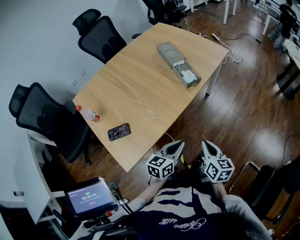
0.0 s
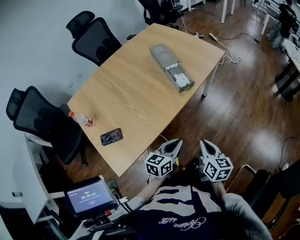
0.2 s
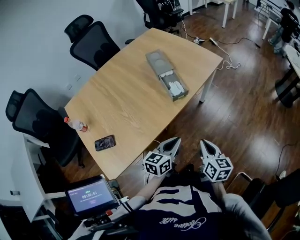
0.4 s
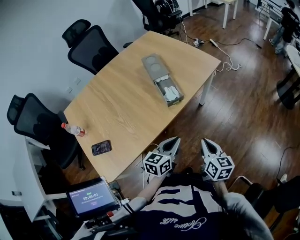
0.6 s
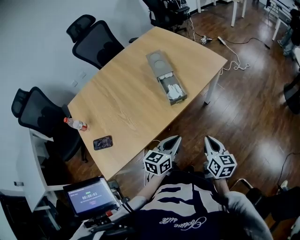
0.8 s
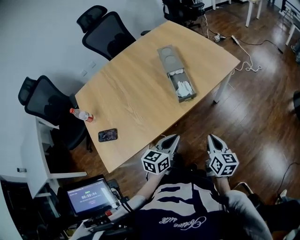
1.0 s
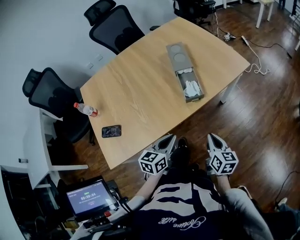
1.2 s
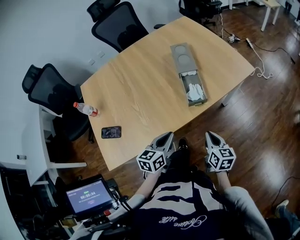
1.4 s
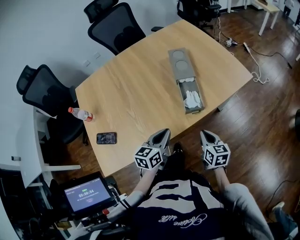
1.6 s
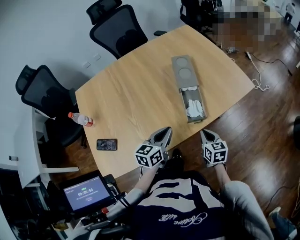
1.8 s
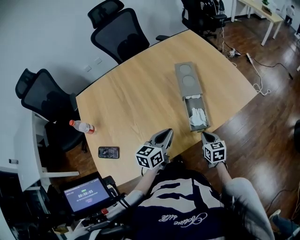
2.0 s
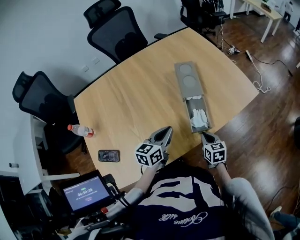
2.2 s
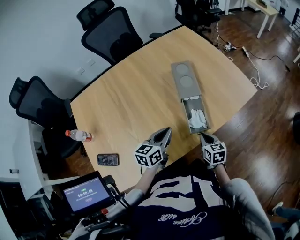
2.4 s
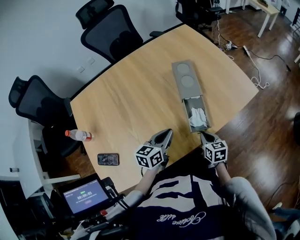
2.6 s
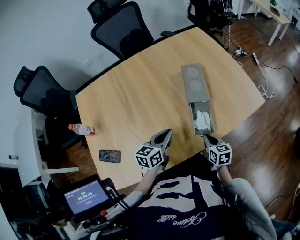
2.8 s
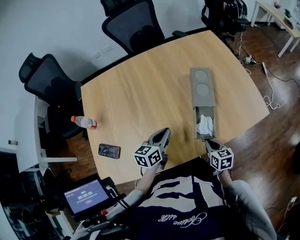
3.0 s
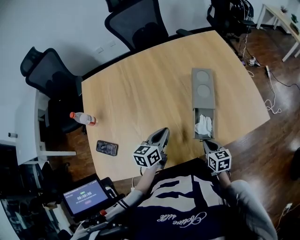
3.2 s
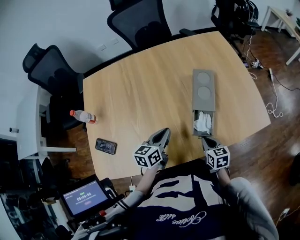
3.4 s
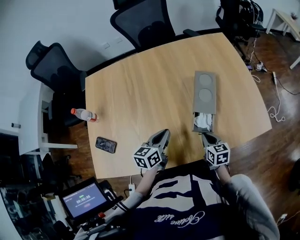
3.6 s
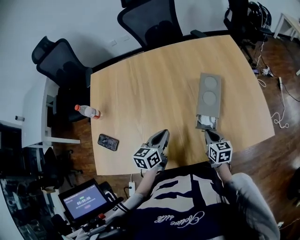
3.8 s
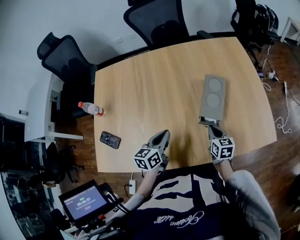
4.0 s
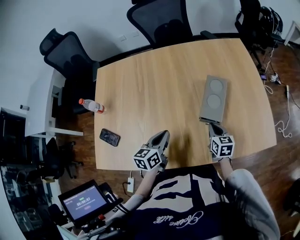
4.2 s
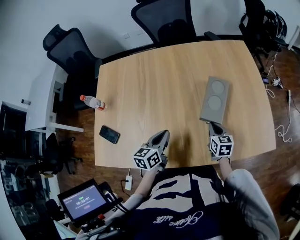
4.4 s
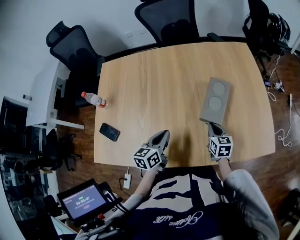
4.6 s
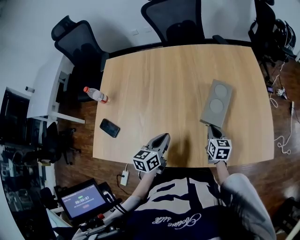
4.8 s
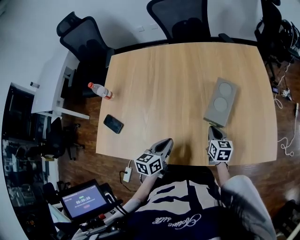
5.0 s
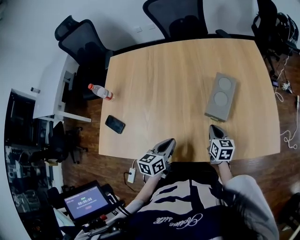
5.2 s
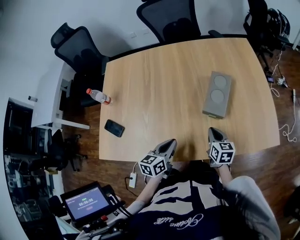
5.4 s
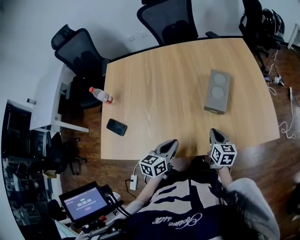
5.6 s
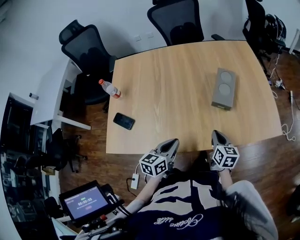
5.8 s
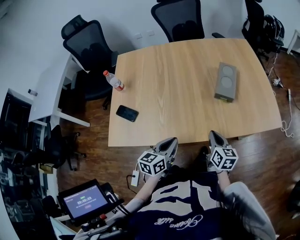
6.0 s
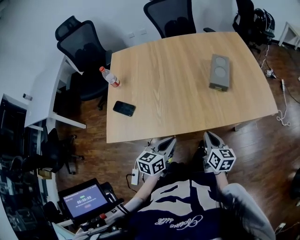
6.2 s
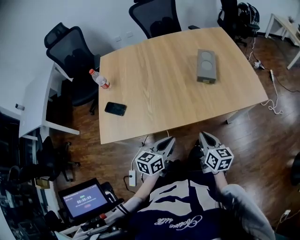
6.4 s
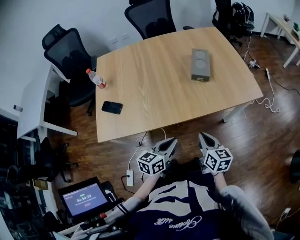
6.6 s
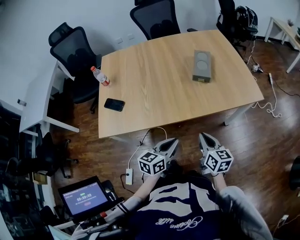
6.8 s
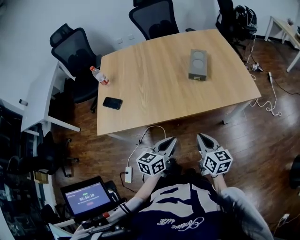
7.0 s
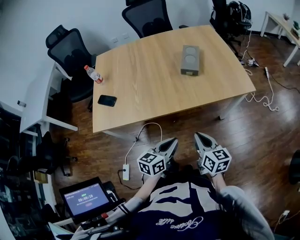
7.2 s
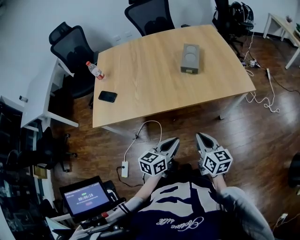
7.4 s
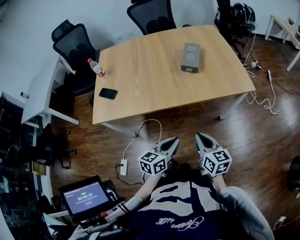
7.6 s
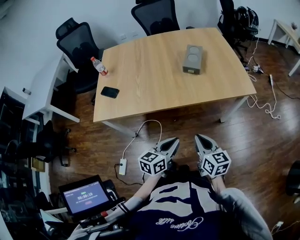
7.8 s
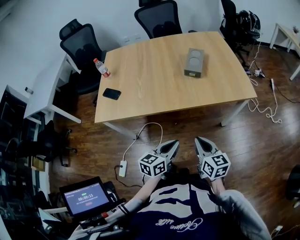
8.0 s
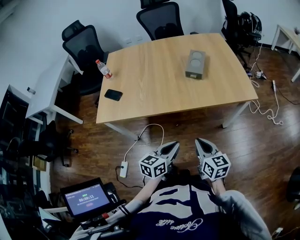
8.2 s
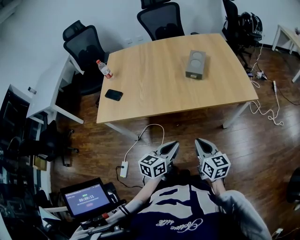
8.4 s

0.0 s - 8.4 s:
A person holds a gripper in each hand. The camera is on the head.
0.0 s - 1.4 s: The grippers both shift forward by some 20 cm. The left gripper changes its angle by some 30 degrees.
1.4 s - 2.8 s: The two grippers go roughly 20 cm forward.
2.8 s - 4.2 s: The left gripper ends up about 5 cm from where it was, and swivels about 30 degrees. Meanwhile the right gripper goes roughly 15 cm forward.
4.2 s - 5.6 s: The two grippers go about 10 cm backward.
5.6 s - 7.0 s: Both grippers travel together backward, about 25 cm.
7.0 s - 8.4 s: The left gripper goes approximately 10 cm to the right and backward; the right gripper moves backward and to the right, roughly 10 cm.

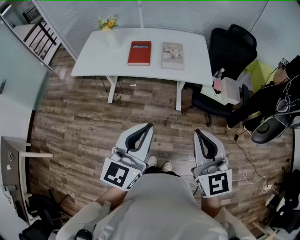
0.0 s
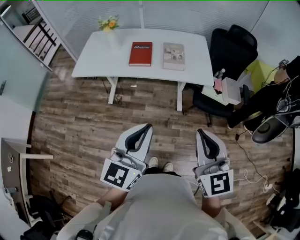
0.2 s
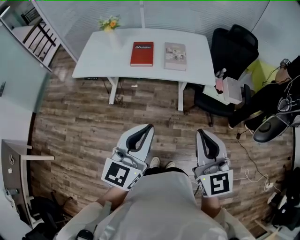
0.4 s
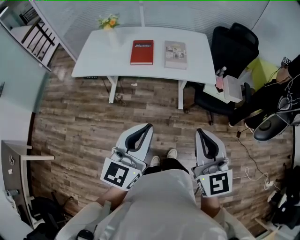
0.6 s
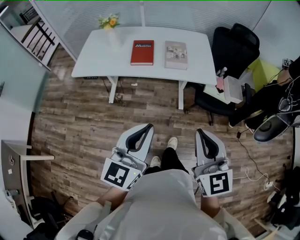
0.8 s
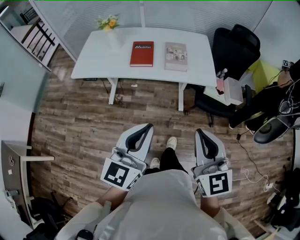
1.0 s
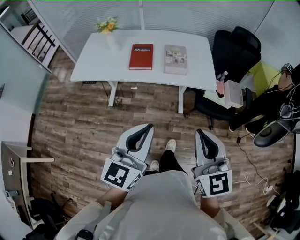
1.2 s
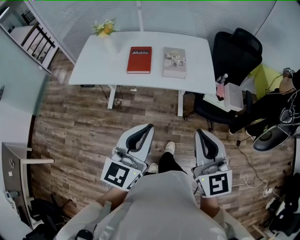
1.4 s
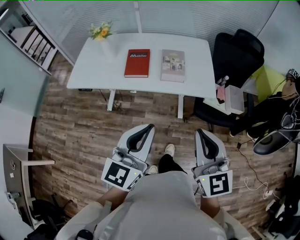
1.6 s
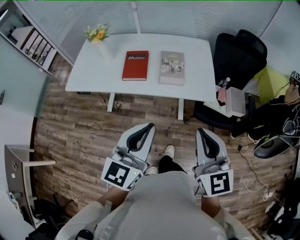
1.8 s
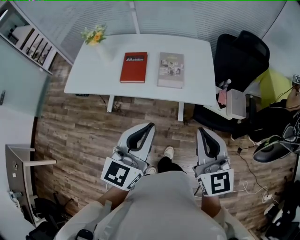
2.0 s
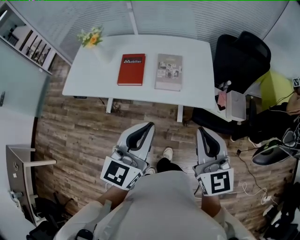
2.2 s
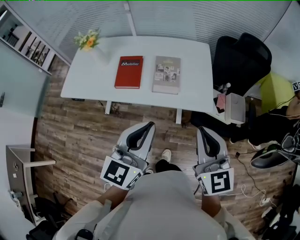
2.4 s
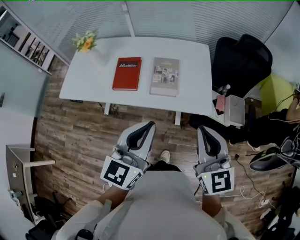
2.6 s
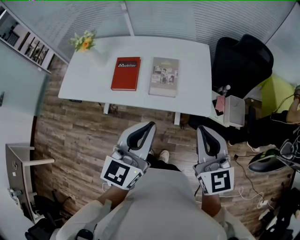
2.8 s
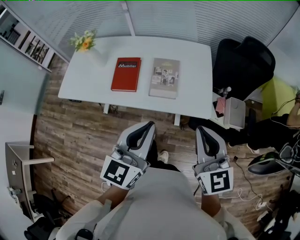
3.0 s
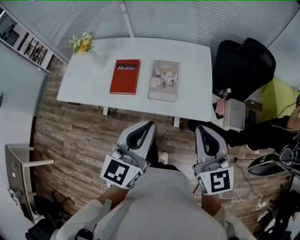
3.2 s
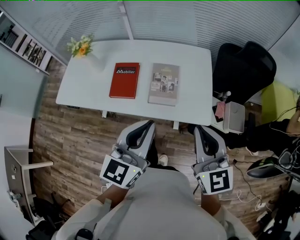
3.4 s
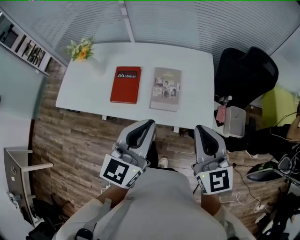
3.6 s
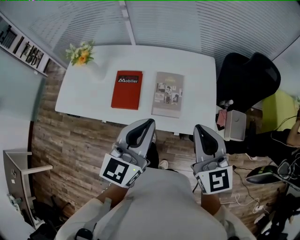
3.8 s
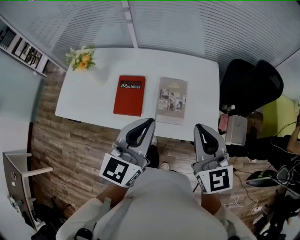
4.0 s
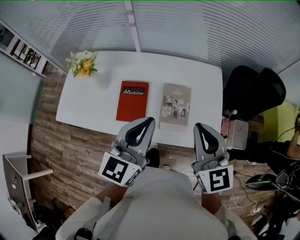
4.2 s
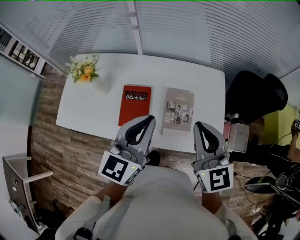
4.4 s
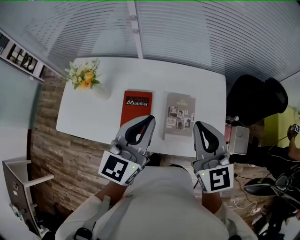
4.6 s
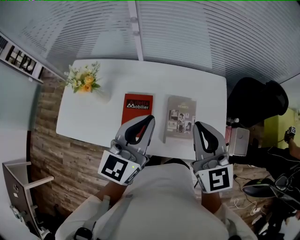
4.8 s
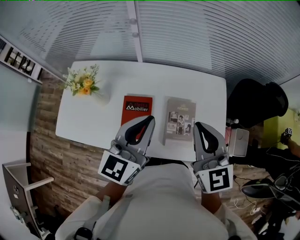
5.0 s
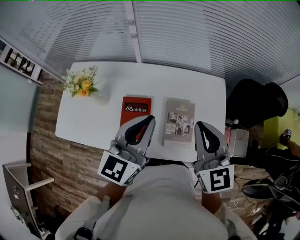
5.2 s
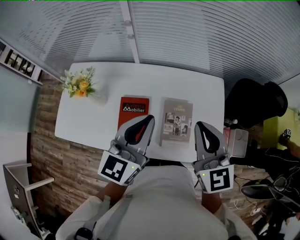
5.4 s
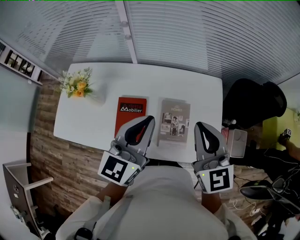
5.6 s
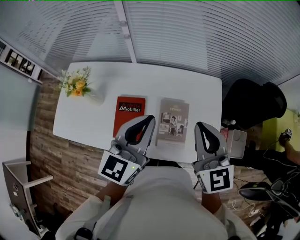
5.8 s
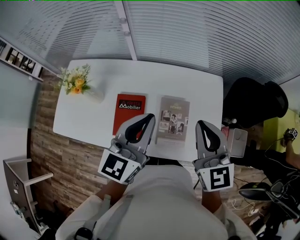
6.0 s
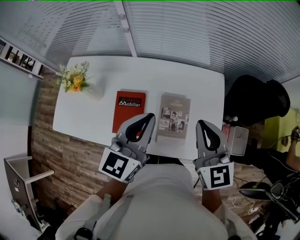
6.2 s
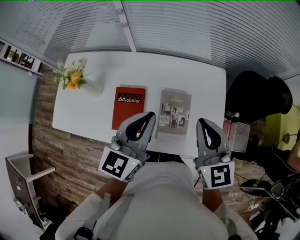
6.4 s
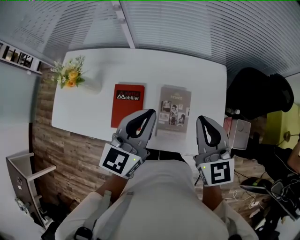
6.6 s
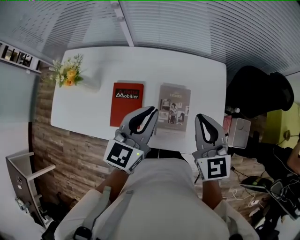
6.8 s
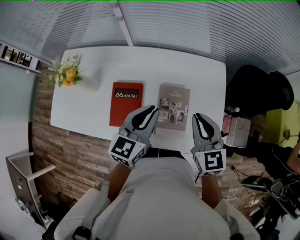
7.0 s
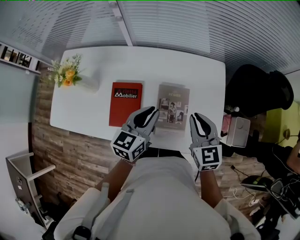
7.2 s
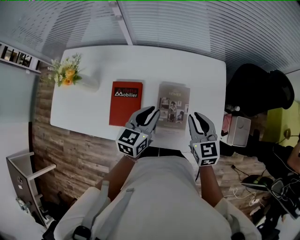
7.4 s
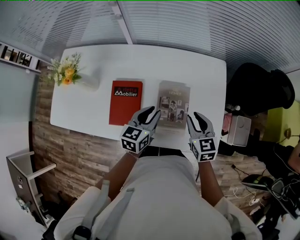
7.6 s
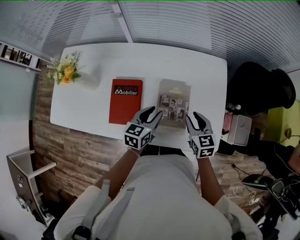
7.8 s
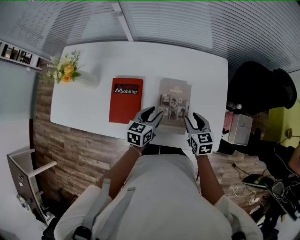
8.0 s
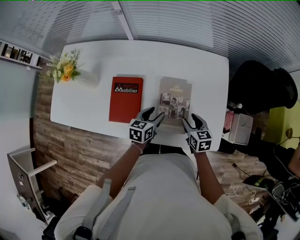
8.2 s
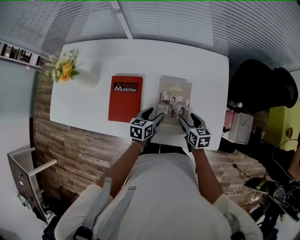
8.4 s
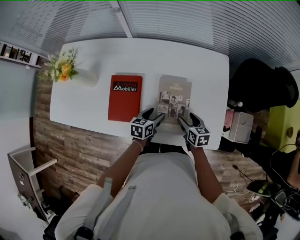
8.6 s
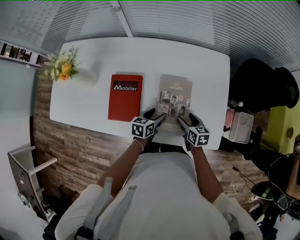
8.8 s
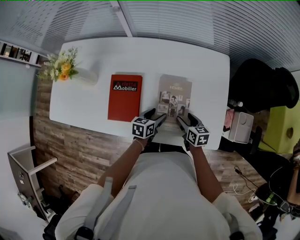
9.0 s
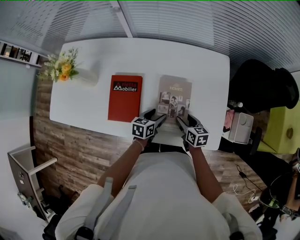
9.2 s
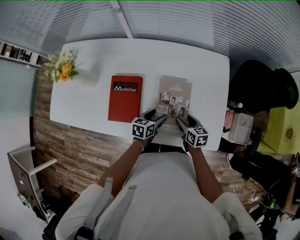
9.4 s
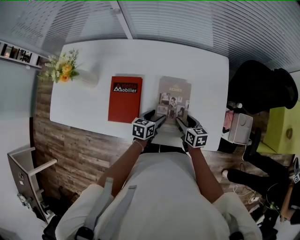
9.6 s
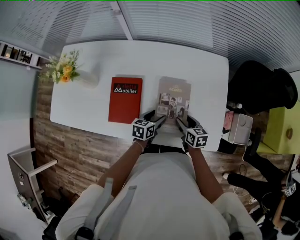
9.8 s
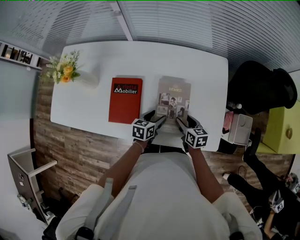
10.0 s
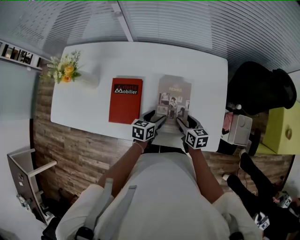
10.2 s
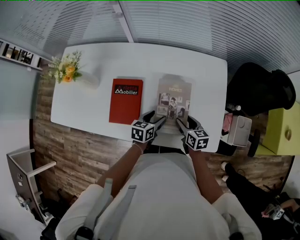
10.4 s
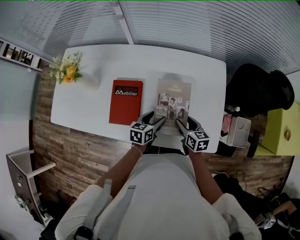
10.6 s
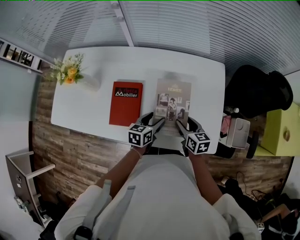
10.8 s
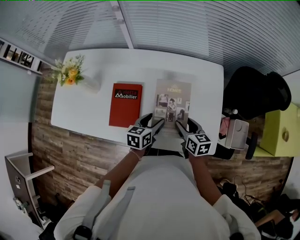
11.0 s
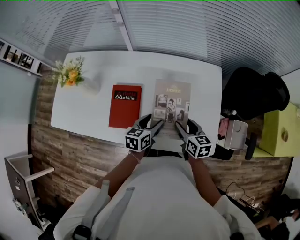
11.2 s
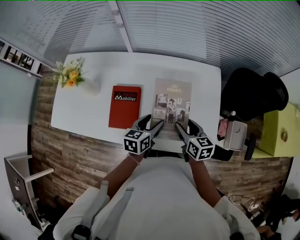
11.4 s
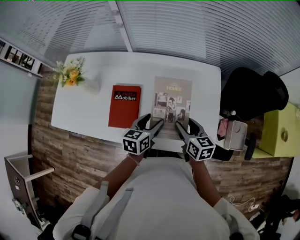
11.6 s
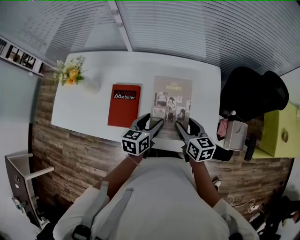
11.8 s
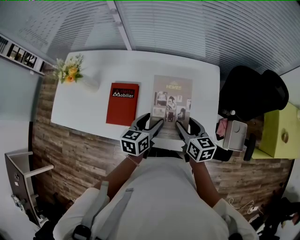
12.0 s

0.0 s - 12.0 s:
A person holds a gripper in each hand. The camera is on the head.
0.0 s - 1.6 s: The two grippers go roughly 15 cm forward.
1.6 s - 3.0 s: Both grippers travel together forward and to the right, roughly 20 cm.
3.0 s - 4.4 s: The two grippers go some 30 cm forward and to the left.
4.4 s - 6.0 s: The two grippers go roughly 5 cm forward.
6.0 s - 7.6 s: Both grippers travel together downward, roughly 25 cm. The right gripper swivels approximately 20 degrees, and opens its fingers. Meanwhile the left gripper rotates approximately 30 degrees, and opens its fingers.
7.6 s - 9.0 s: Both grippers travel together downward, some 15 cm. The right gripper turns by some 30 degrees, and opens; the left gripper turns by roughly 20 degrees, and opens its fingers.
9.0 s - 10.4 s: The grippers move only a little.
10.4 s - 12.0 s: Both grippers travel together upward, roughly 15 cm.

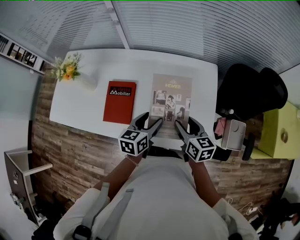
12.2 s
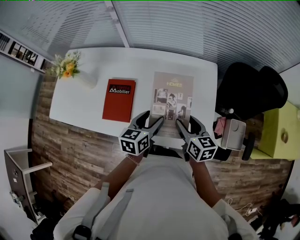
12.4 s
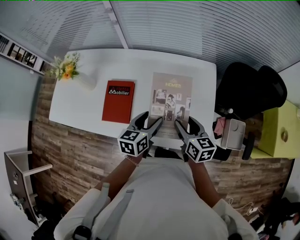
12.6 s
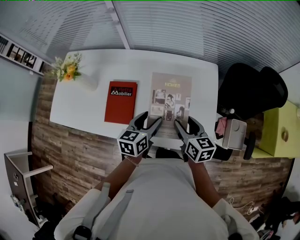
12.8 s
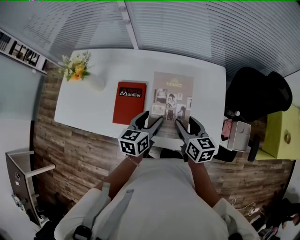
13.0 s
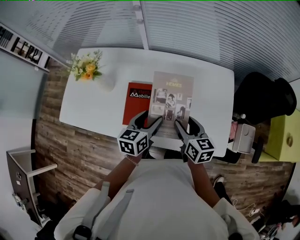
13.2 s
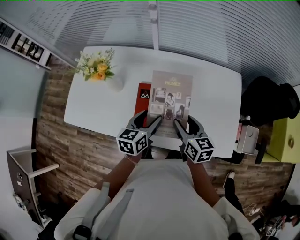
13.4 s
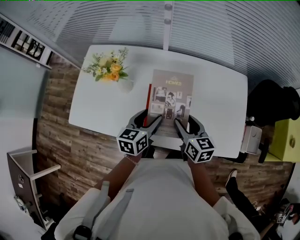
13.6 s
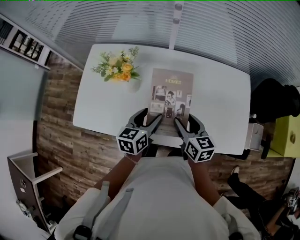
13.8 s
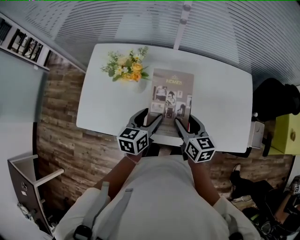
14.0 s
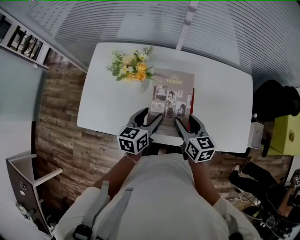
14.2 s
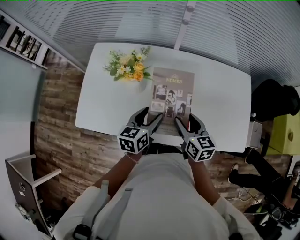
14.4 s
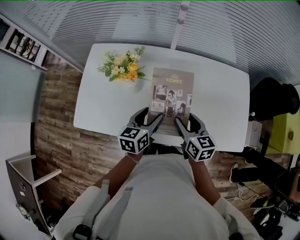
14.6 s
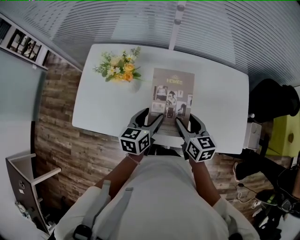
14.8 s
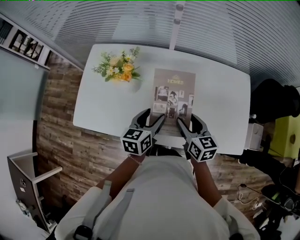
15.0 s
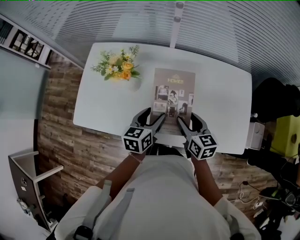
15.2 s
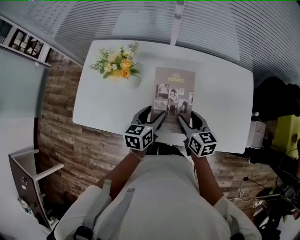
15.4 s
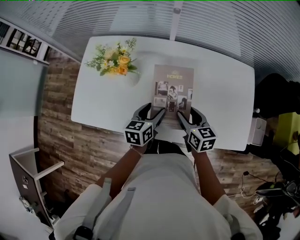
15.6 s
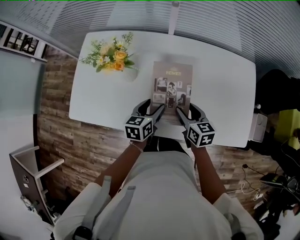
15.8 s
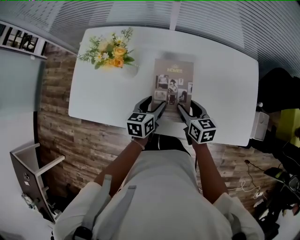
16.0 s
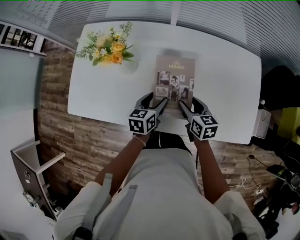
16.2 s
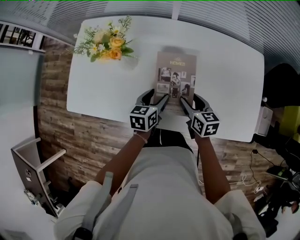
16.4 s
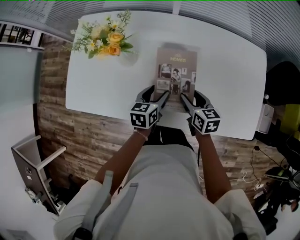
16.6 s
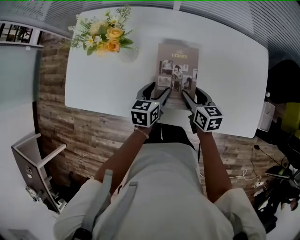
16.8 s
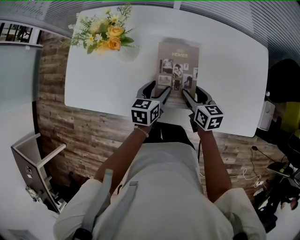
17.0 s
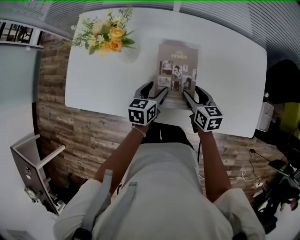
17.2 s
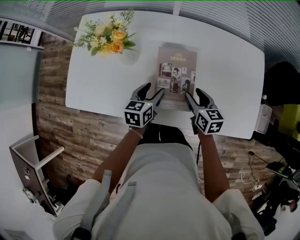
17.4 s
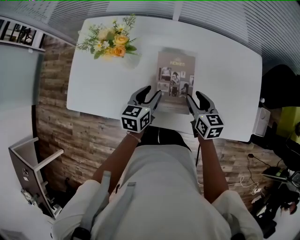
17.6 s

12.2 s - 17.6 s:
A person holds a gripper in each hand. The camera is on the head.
12.2 s - 13.6 s: Both grippers move to the left, roughly 25 cm.
15.0 s - 16.2 s: The grippers both shift downward by approximately 10 cm.
16.2 s - 17.6 s: The grippers stay close to where they were, moving slightly.
